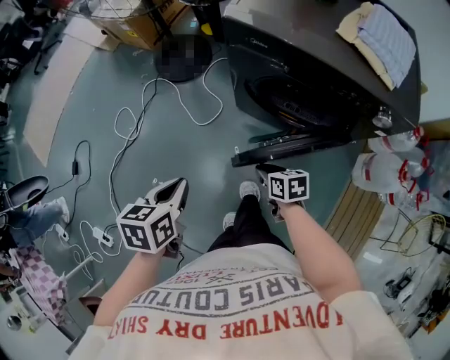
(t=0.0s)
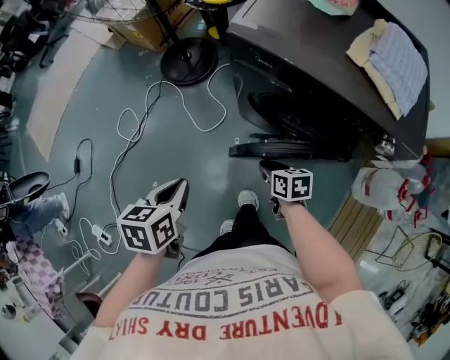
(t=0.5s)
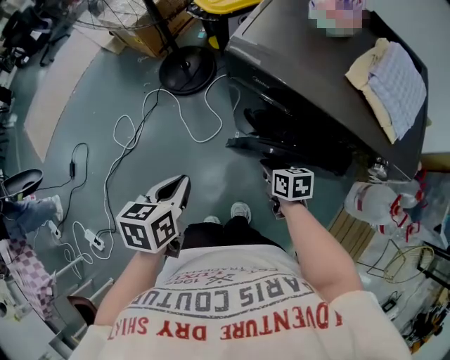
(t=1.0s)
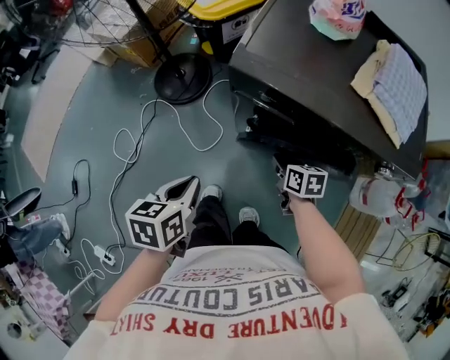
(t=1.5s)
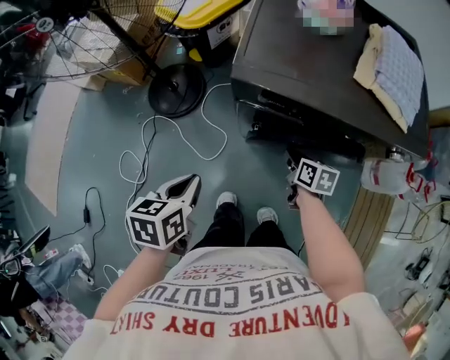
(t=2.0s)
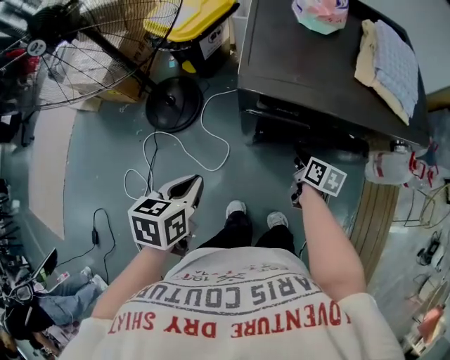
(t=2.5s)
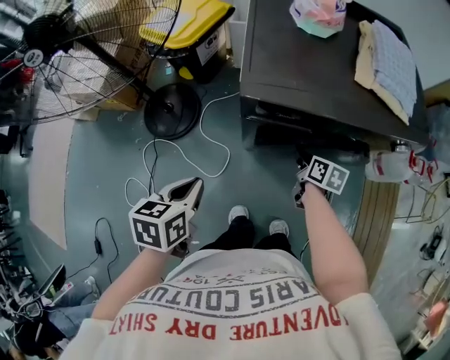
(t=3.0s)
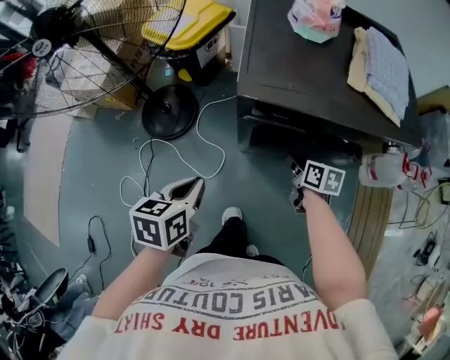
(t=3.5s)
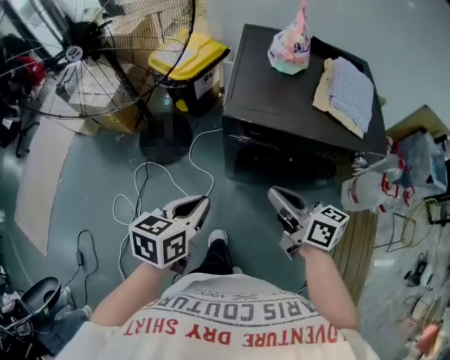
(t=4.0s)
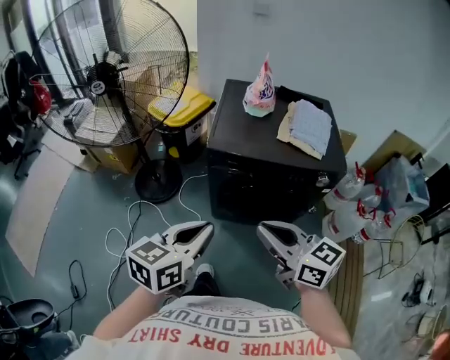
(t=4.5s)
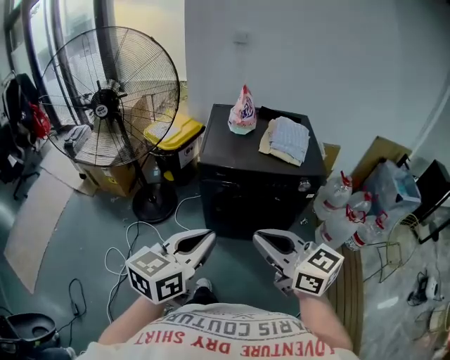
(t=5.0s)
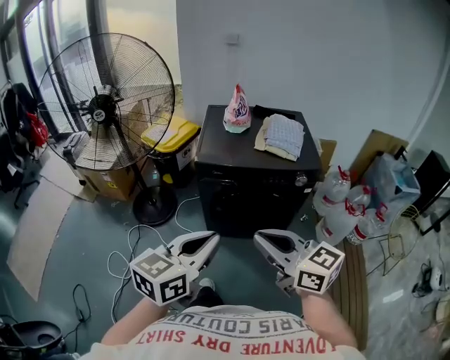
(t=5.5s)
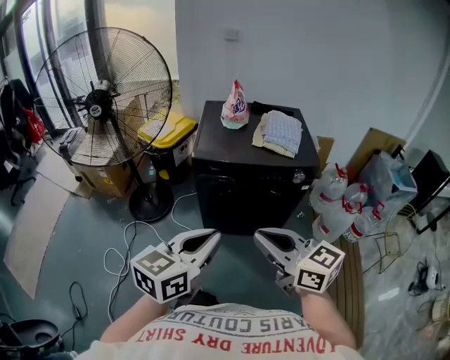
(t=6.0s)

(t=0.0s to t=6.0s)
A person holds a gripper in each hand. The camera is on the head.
t=0.0s - t=2.0s: The right gripper ends up about 20 cm from where it was, and turns by about 30 degrees; the left gripper moves about 20 cm.
t=2.0s - t=4.0s: The left gripper moves upward, approximately 10 cm. The right gripper shifts some 25 cm upward, and angles its fingers upward, by approximately 30 degrees.
t=4.0s - t=6.0s: The left gripper is displaced upward, backward and to the right by approximately 25 cm, and changes its angle by approximately 30 degrees; the right gripper shifts about 30 cm backward and upward, and rotates roughly 30 degrees.

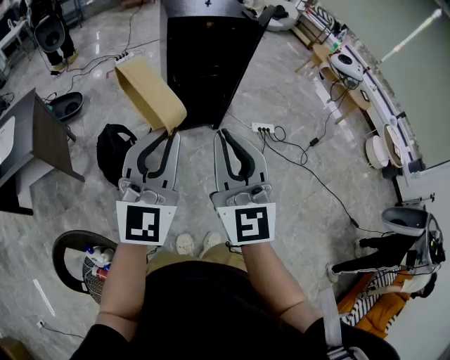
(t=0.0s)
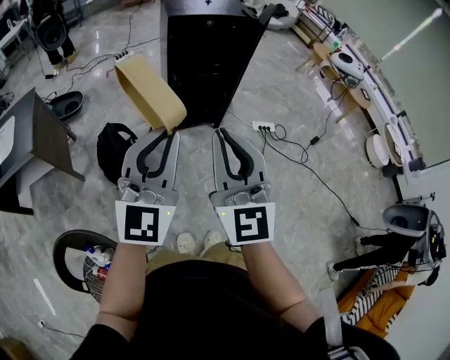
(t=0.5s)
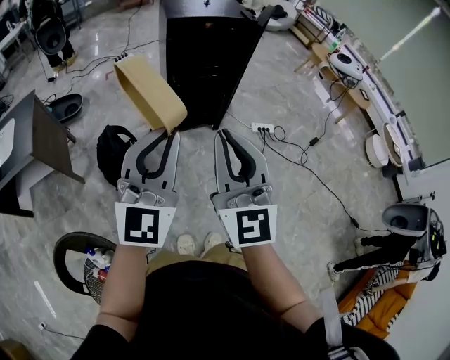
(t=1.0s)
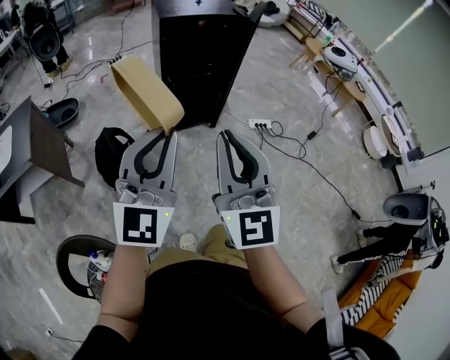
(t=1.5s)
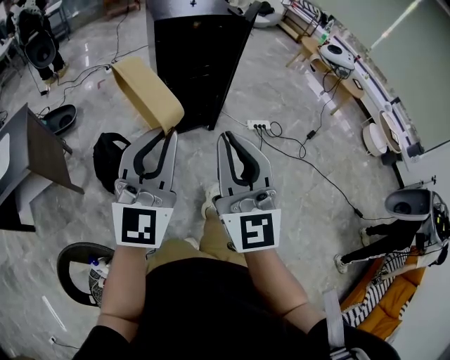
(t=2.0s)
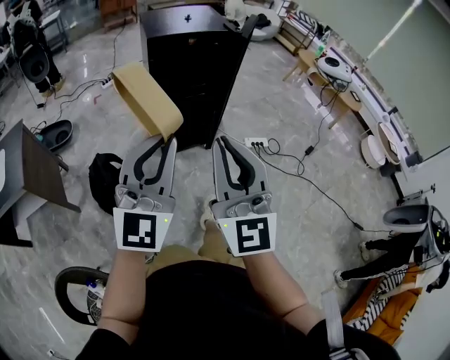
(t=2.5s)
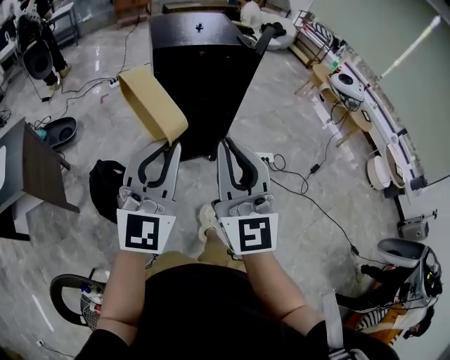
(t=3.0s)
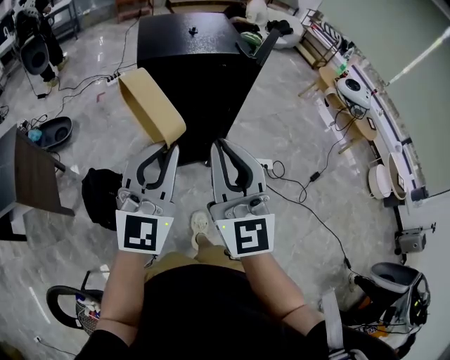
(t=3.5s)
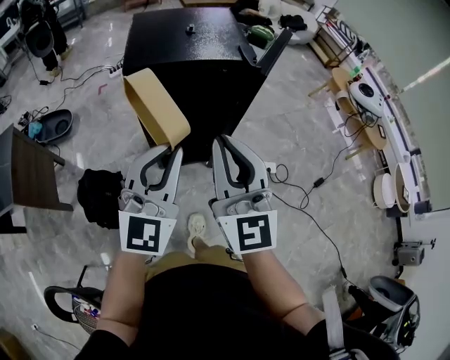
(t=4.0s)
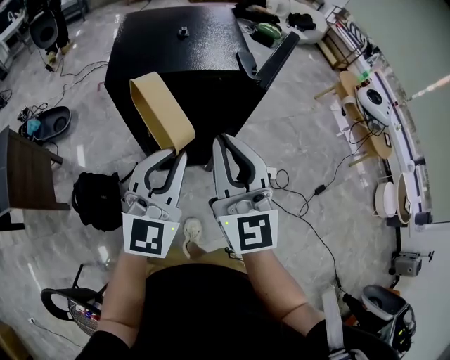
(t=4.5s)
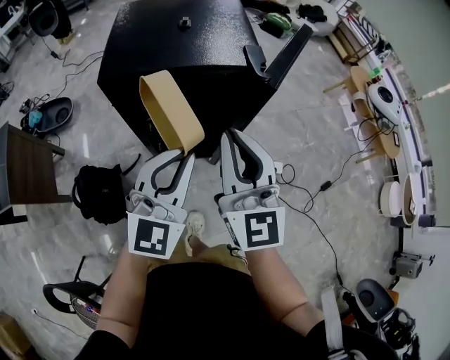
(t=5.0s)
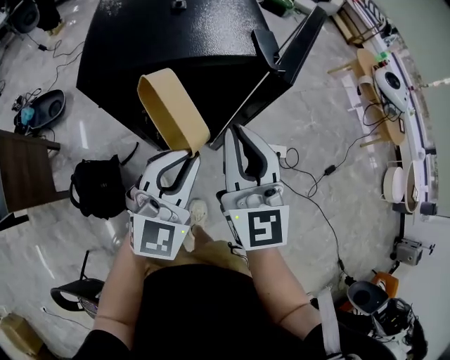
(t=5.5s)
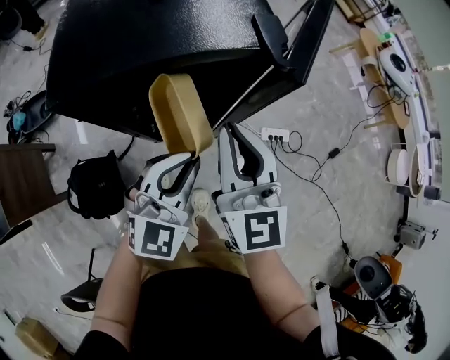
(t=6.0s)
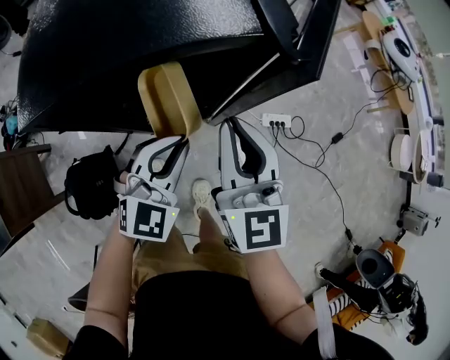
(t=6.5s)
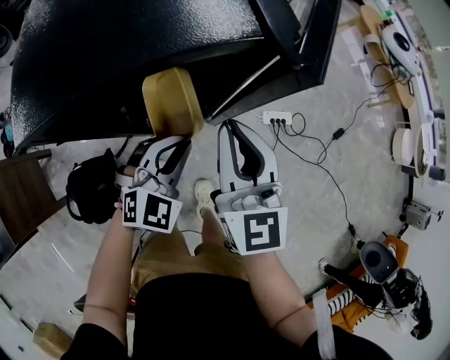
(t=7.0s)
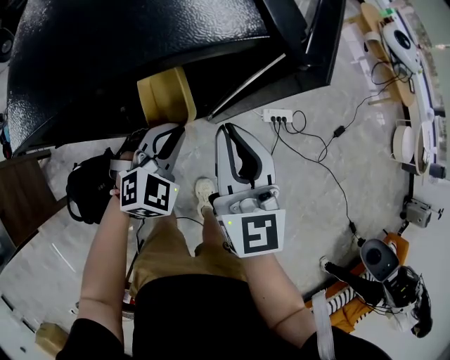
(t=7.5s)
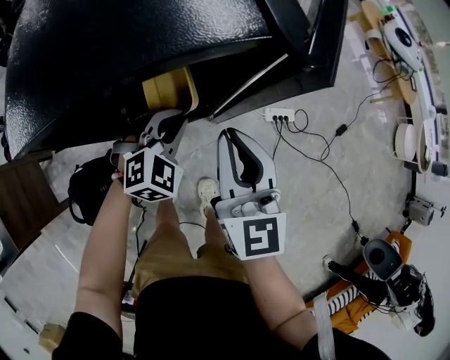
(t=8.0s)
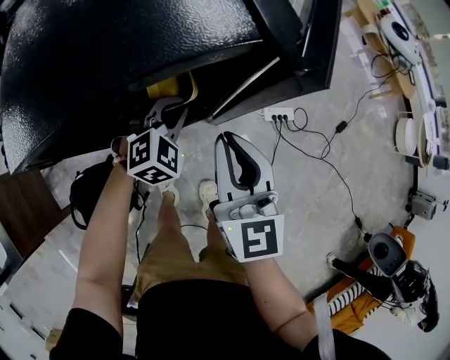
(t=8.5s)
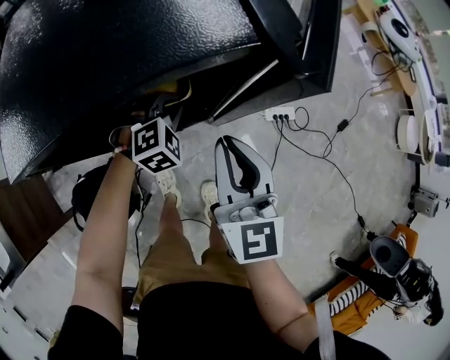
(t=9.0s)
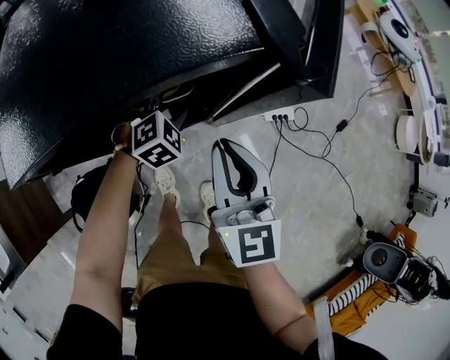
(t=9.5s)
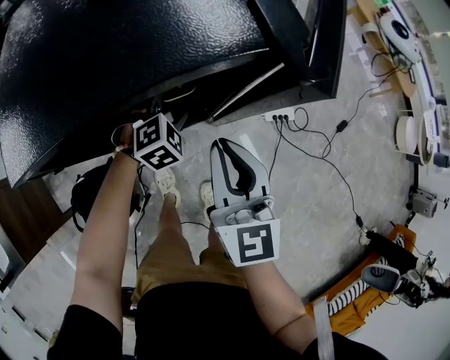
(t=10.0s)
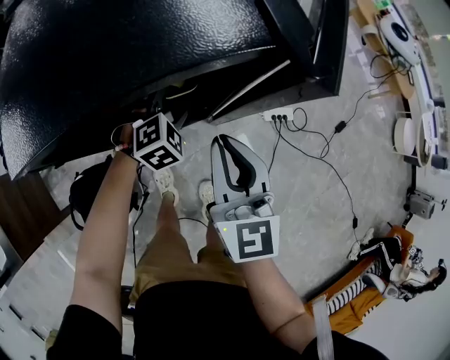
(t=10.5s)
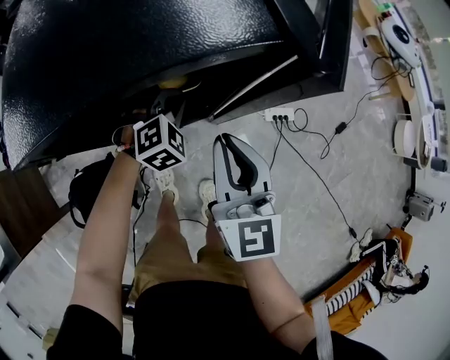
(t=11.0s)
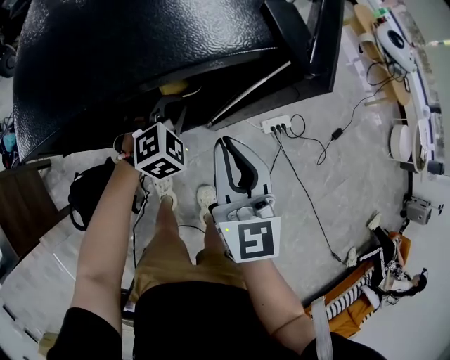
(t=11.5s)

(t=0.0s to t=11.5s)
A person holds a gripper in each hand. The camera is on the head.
t=0.0s - t=2.0s: The grippers make only small movements.
t=2.0s - t=4.0s: Both grippers are carried forward, roughly 40 cm.
t=4.0s - t=6.0s: The right gripper is displaced forward and downward by approximately 30 cm. The left gripper travels downward and forward by some 25 cm, and turns by some 20 degrees.
t=6.0s - t=7.5s: The left gripper shifts about 15 cm downward and forward, and rotates approximately 30 degrees. Meanwhile the right gripper travels downward by about 5 cm.
t=7.5s - t=9.5s: The left gripper is displaced forward and downward by about 15 cm, and opens.
t=9.5s - t=11.5s: The left gripper closes.

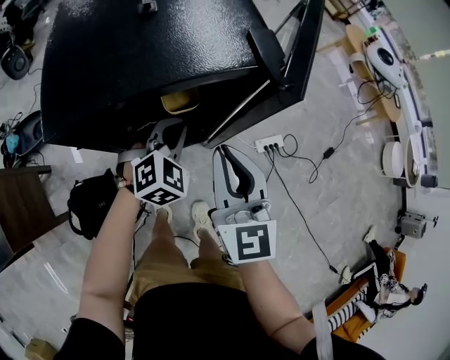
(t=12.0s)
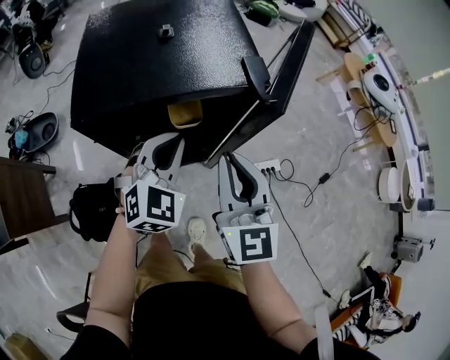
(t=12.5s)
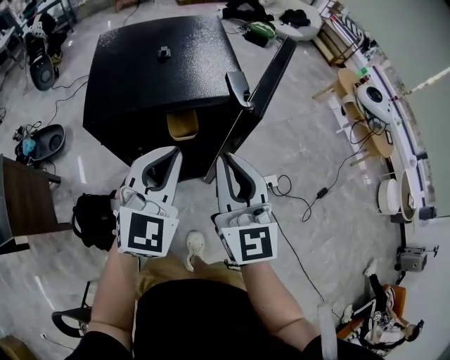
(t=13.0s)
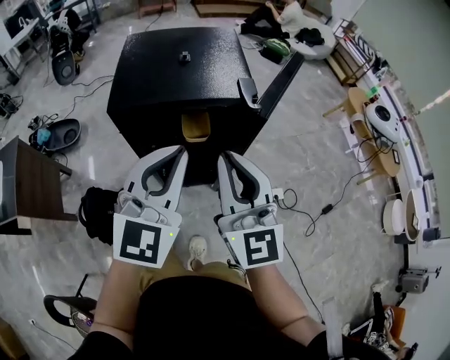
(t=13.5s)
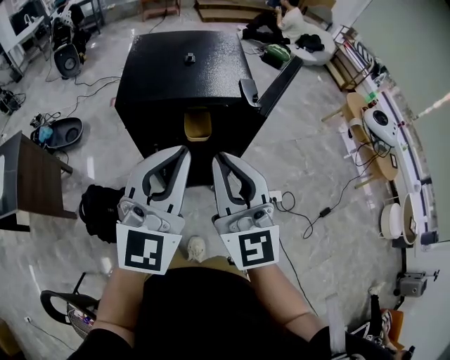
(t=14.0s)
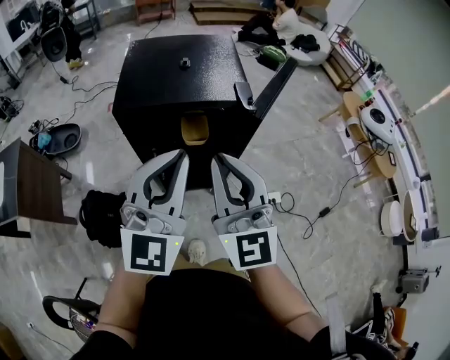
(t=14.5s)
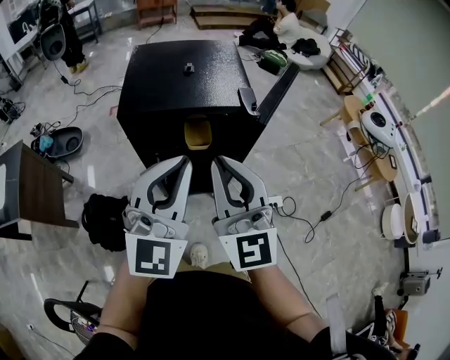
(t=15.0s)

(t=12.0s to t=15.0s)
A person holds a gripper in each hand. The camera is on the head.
t=12.0s - t=13.5s: The right gripper shifts roughly 20 cm upward and backward, and changes its angle by approximately 20 degrees. Meanwhile the left gripper moves upward and backward, roughly 35 cm, and tips its fingers upward by some 40 degrees.
t=13.5s - t=15.0s: The grippers move only a little.

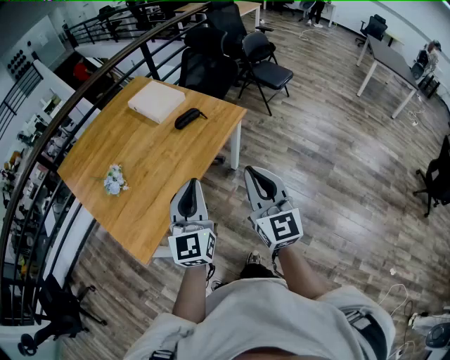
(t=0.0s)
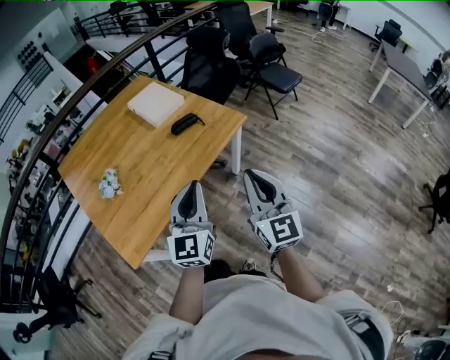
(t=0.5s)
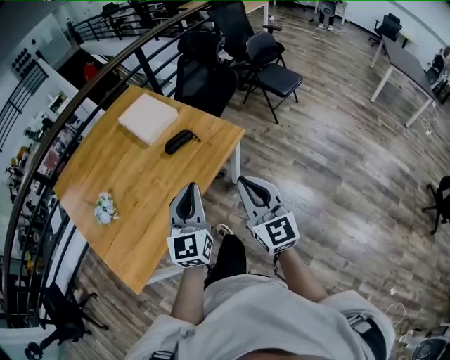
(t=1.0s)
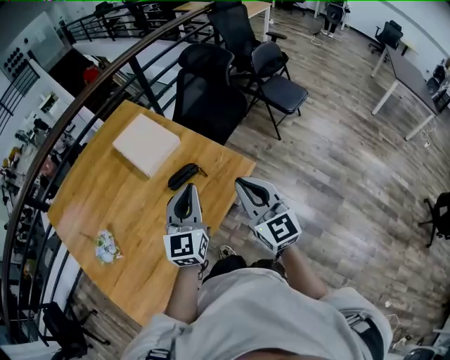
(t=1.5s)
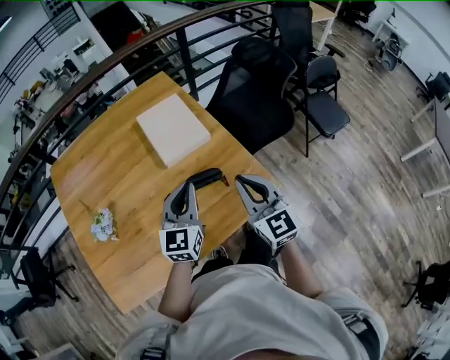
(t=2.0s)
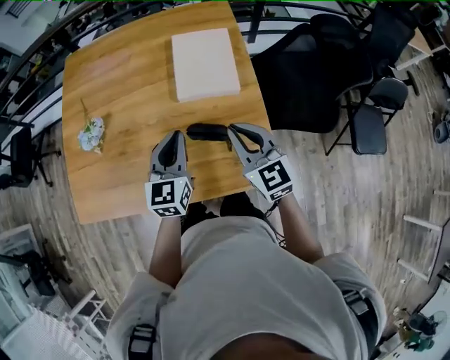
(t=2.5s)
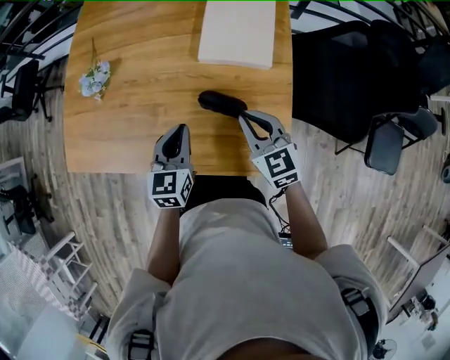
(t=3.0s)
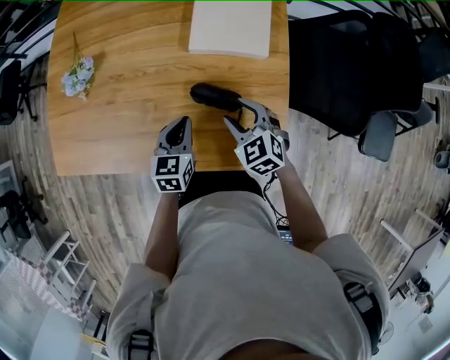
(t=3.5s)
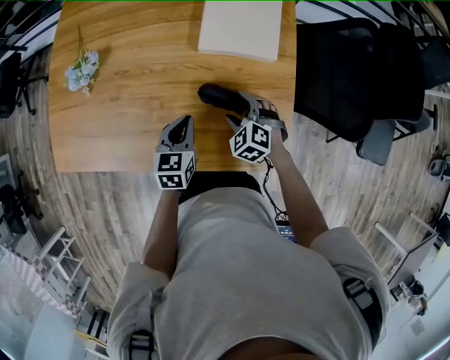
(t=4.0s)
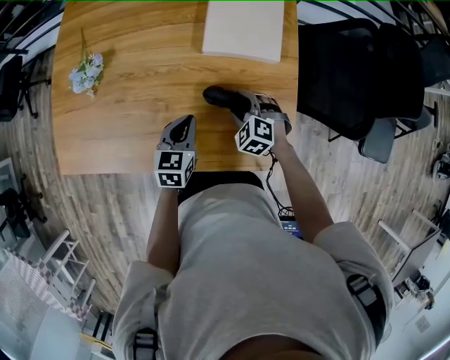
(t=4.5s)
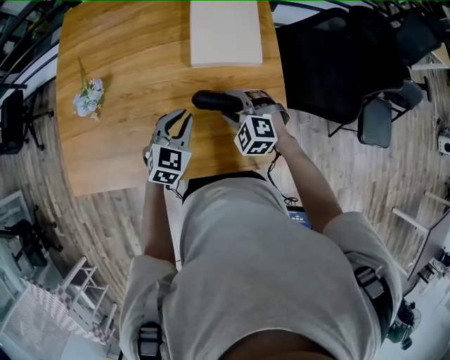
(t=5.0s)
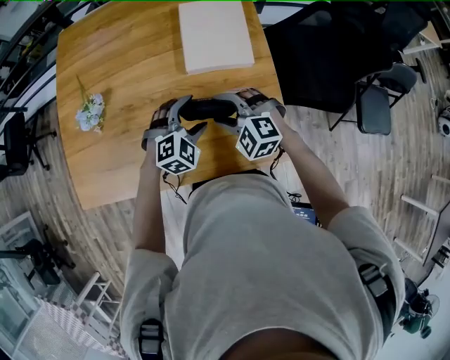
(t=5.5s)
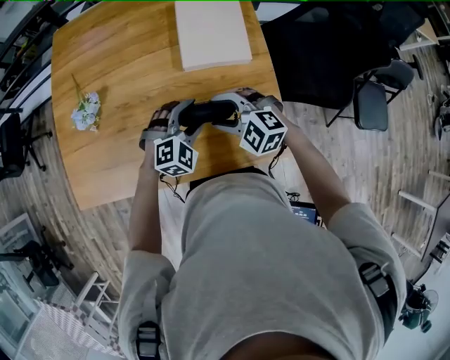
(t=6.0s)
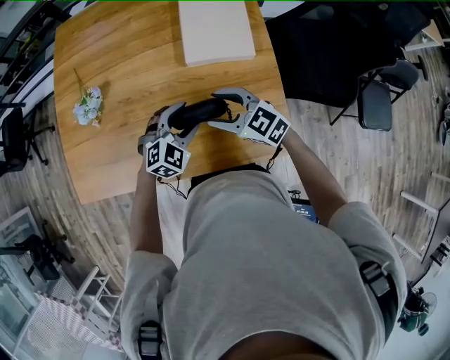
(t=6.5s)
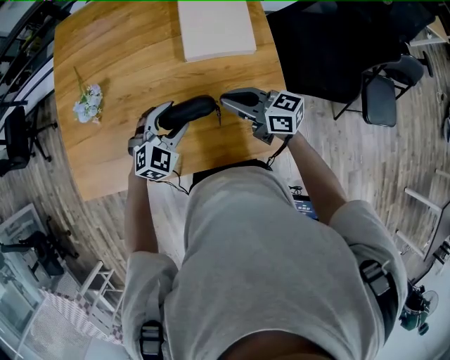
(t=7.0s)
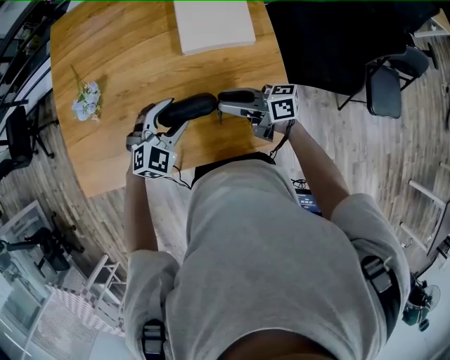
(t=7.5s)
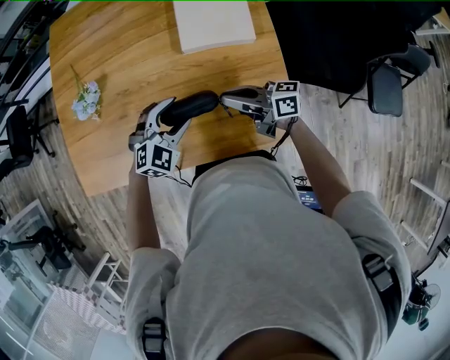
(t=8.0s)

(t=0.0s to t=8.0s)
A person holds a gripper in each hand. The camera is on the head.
t=0.0s - t=2.0s: The pair of grippers is taken forward, about 40 cm. The left gripper turns by roughly 20 degrees. The right gripper turns by some 30 degrees.
t=2.0s - t=4.0s: The grippers both shift downward by approximately 25 cm. The right gripper tilts its fingers approximately 50 degrees downward, and opens its fingers; the left gripper swivels roughly 40 degrees.
t=4.0s - t=6.0s: The right gripper moves upward, approximately 15 cm, and rotates approximately 30 degrees. Meanwhile the left gripper moves upward and to the right, roughly 5 cm, rotates around the line of its fingers by about 70 degrees, clockwise from behind, and opens.
t=6.0s - t=8.0s: The right gripper rotates around the line of its fingers by roughly 70 degrees, clockwise from behind, and closes up. The left gripper changes place by some 5 cm.
